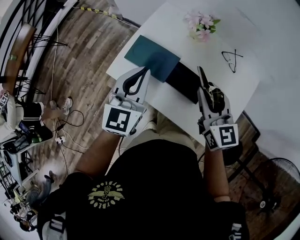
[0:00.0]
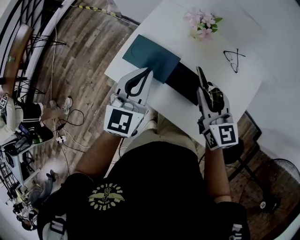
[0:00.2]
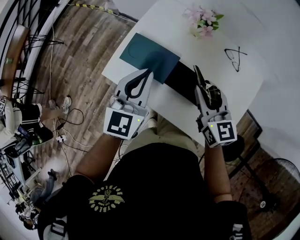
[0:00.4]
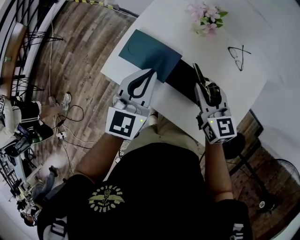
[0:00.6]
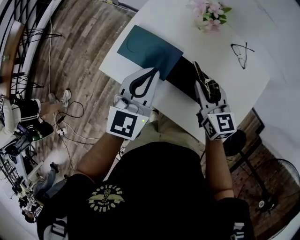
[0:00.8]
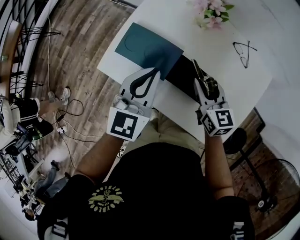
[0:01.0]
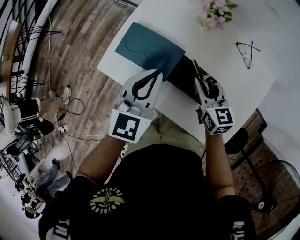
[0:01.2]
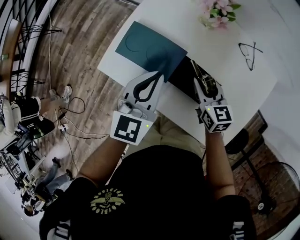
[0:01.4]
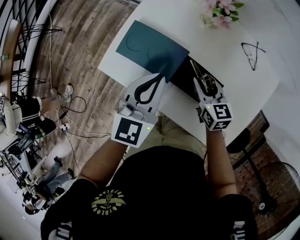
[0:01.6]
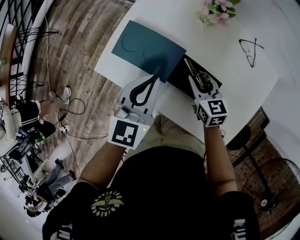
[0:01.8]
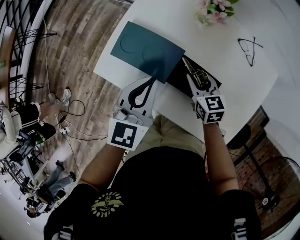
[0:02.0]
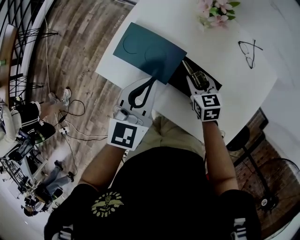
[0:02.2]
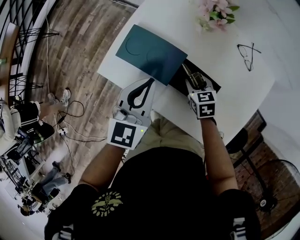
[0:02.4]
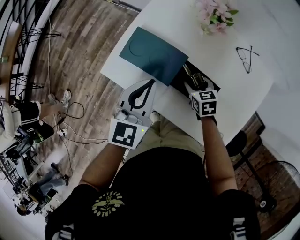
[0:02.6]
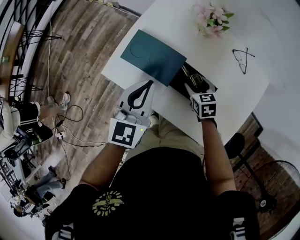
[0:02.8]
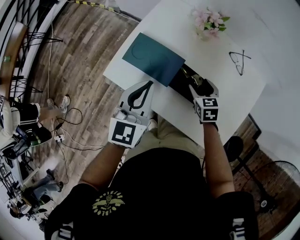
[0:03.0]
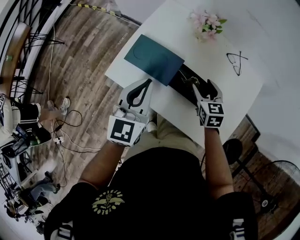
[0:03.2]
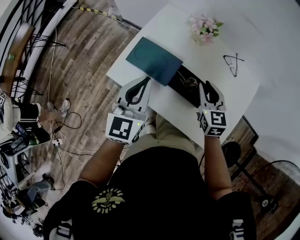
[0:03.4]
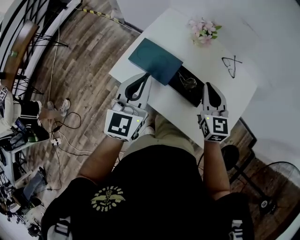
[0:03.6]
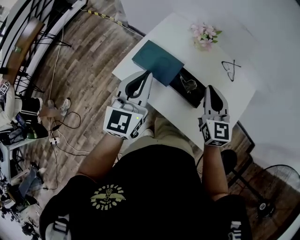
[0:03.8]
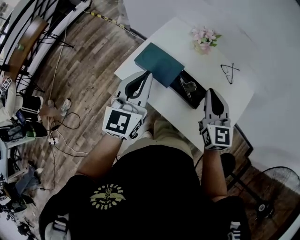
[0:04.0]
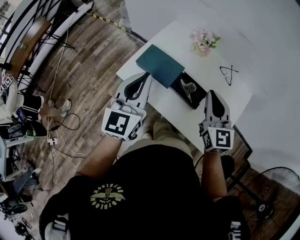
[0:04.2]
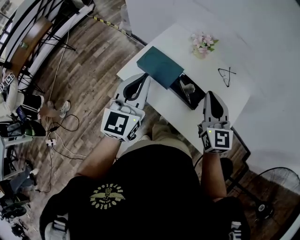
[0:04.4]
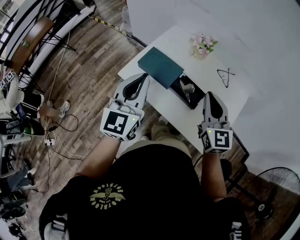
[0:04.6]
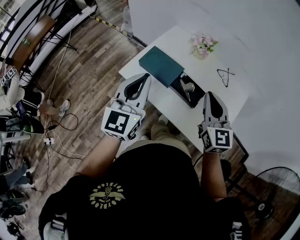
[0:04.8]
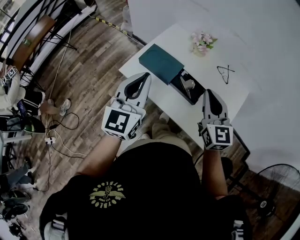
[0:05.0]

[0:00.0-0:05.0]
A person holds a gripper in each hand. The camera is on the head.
0:00.0 to 0:01.6: The right gripper shifts roughly 25 cm downward, and changes its angle by some 20 degrees, while the left gripper moves downward, roughly 10 cm.
0:01.6 to 0:03.4: The right gripper is displaced upward by roughly 10 cm, turns by about 20 degrees, and opens and closes again, while the left gripper shifts some 10 cm upward, to the left and backward.
0:03.4 to 0:05.0: The grippers both shift upward and backward by roughly 20 cm.

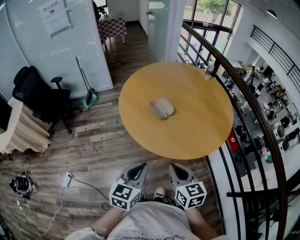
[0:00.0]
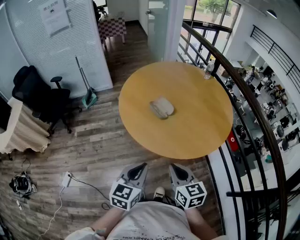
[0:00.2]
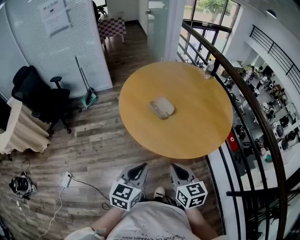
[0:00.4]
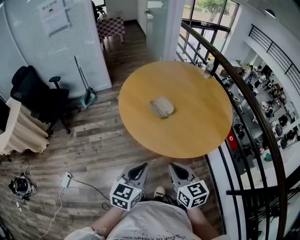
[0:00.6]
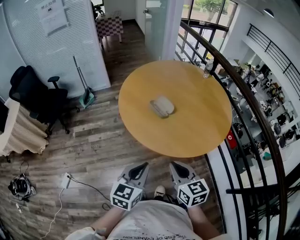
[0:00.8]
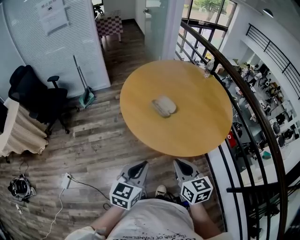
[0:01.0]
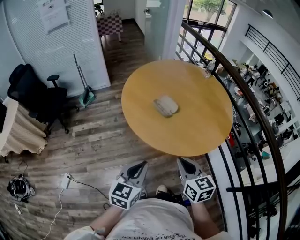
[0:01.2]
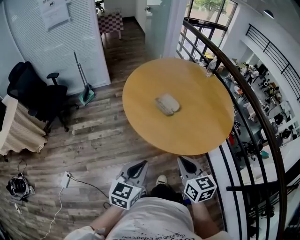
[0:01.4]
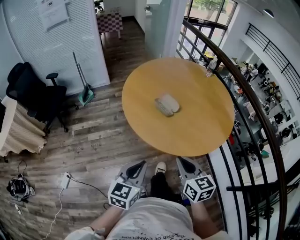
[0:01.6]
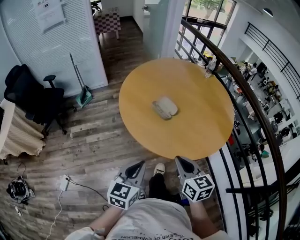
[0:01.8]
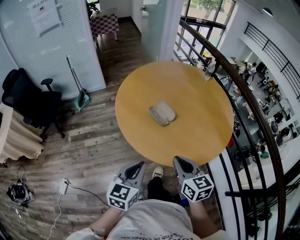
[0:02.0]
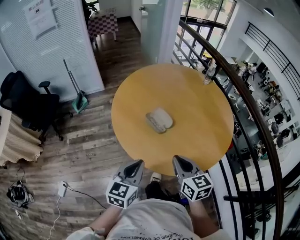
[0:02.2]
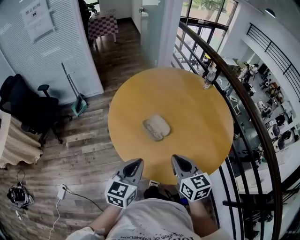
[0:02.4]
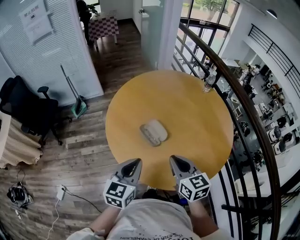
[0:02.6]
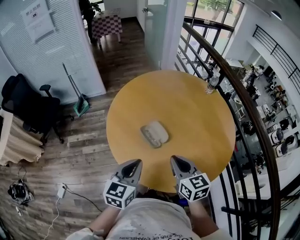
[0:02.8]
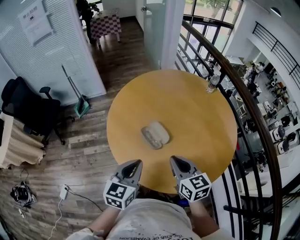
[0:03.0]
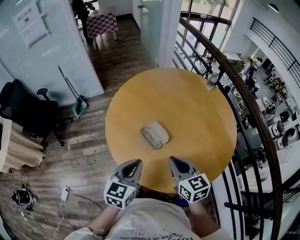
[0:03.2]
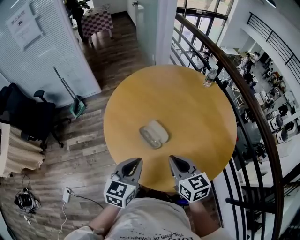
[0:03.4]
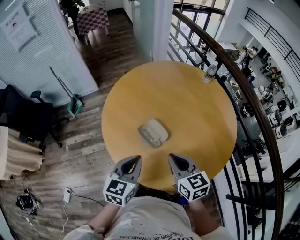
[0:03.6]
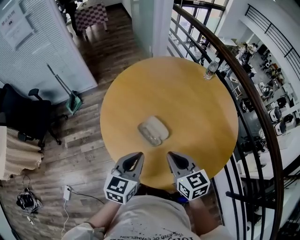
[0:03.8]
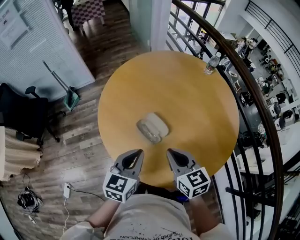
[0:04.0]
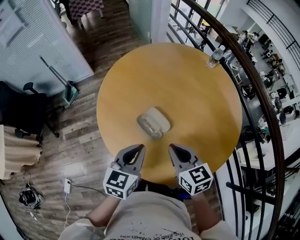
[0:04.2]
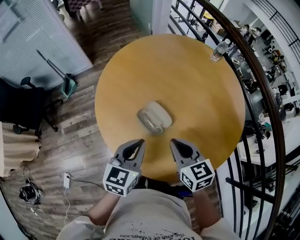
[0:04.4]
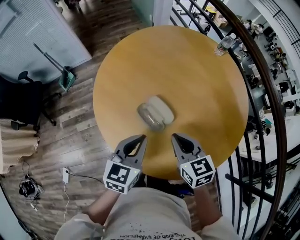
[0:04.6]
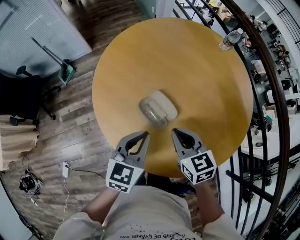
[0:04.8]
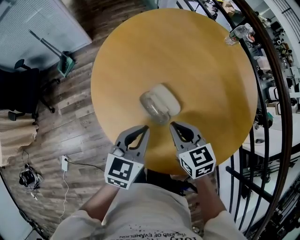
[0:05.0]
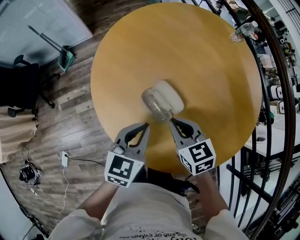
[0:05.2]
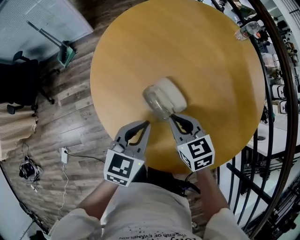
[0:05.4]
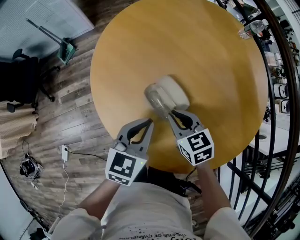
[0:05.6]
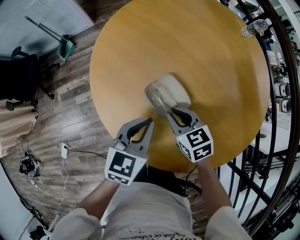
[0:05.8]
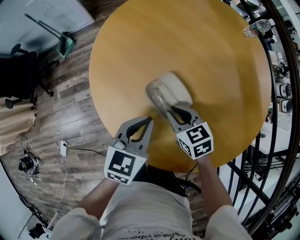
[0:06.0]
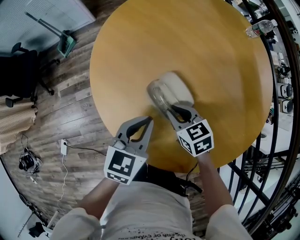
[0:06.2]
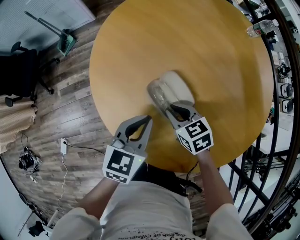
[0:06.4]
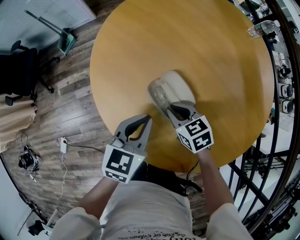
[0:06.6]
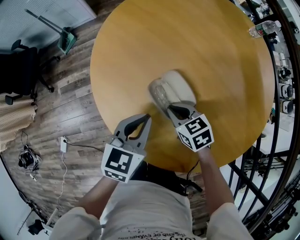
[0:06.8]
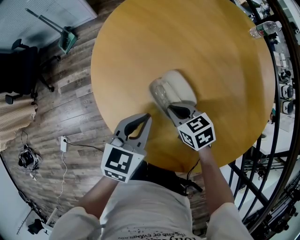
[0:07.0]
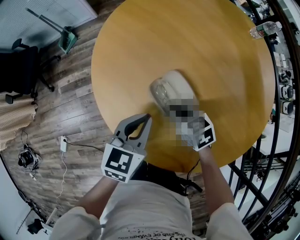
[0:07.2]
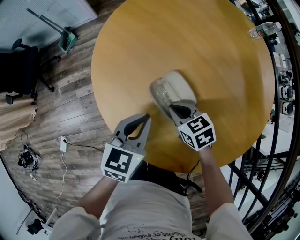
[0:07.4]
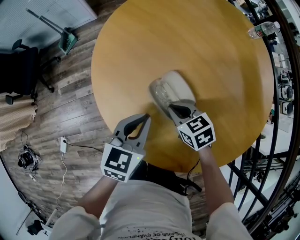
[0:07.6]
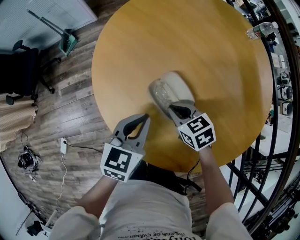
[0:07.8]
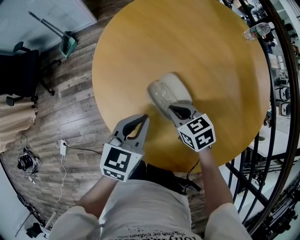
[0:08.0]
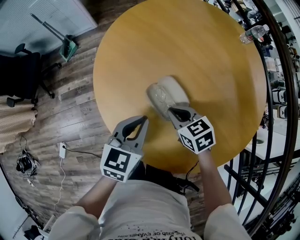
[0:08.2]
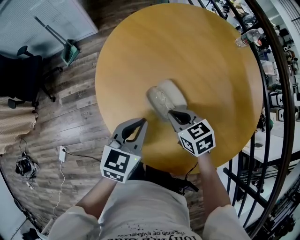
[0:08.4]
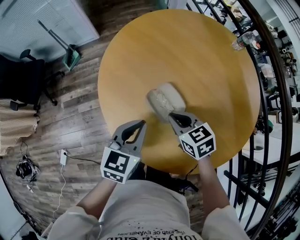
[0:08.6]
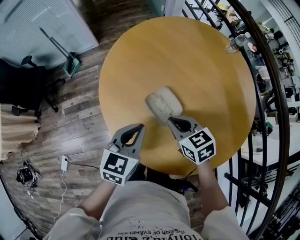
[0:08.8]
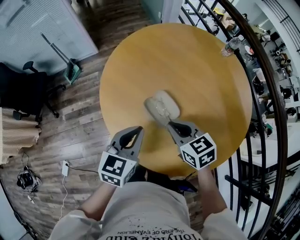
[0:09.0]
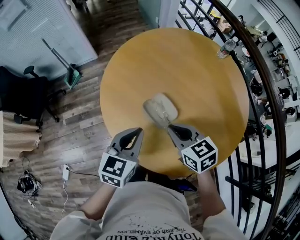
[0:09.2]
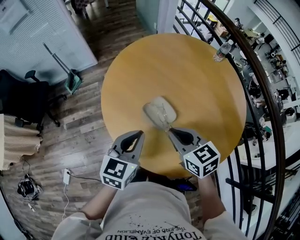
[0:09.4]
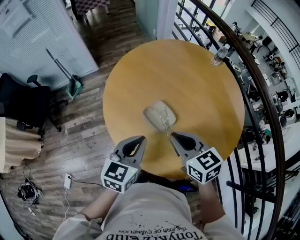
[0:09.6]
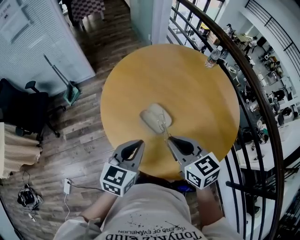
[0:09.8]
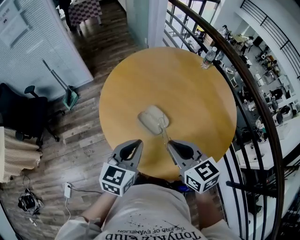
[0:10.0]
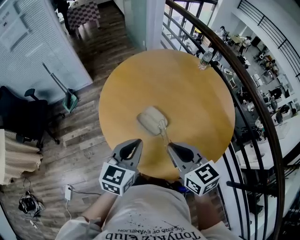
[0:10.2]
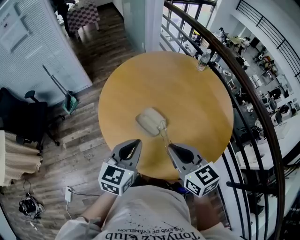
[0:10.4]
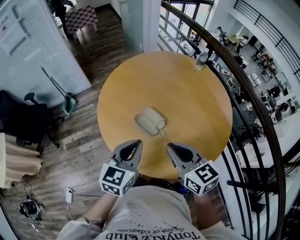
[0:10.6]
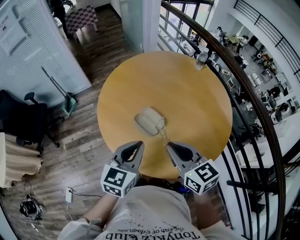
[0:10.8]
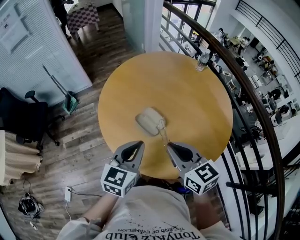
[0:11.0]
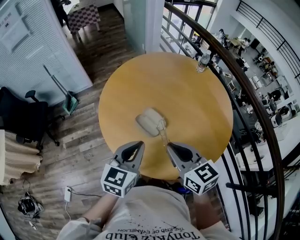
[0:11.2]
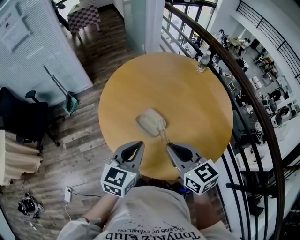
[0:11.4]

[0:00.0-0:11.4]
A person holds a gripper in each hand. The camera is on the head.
0:00.0 to 0:01.4: The left gripper goes roughly 5 cm to the left.
0:01.4 to 0:02.8: The grippers both shift forward by roughly 25 cm.
0:02.8 to 0:04.2: Both grippers move forward, approximately 10 cm.
0:04.2 to 0:05.6: The left gripper is displaced downward and forward by roughly 10 cm; the right gripper is displaced downward and forward by some 15 cm.
0:05.6 to 0:07.2: The right gripper shifts some 5 cm downward.
0:07.2 to 0:08.6: The left gripper travels upward by approximately 5 cm. The right gripper shifts roughly 10 cm upward.
0:08.6 to 0:10.0: The right gripper heads upward and backward, covering some 20 cm, and swivels roughly 20 degrees, while the left gripper travels upward and backward by some 10 cm.
0:10.0 to 0:11.4: The grippers stay close to where they were, moving slightly.

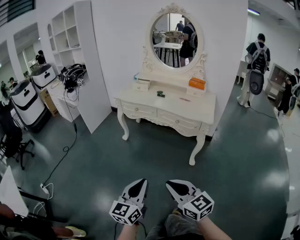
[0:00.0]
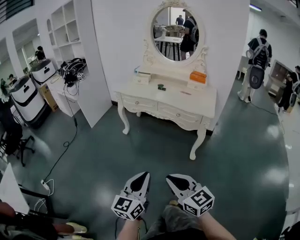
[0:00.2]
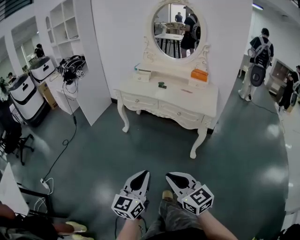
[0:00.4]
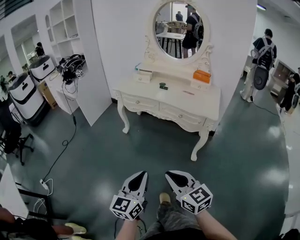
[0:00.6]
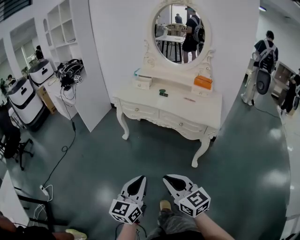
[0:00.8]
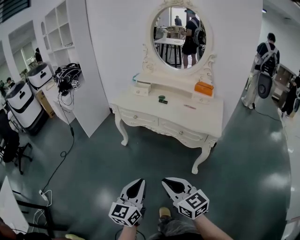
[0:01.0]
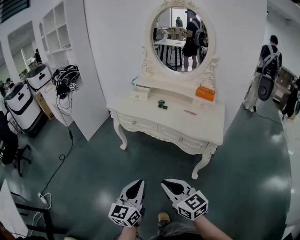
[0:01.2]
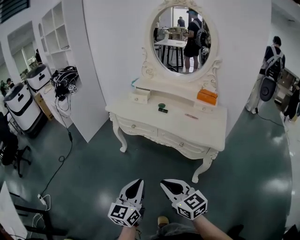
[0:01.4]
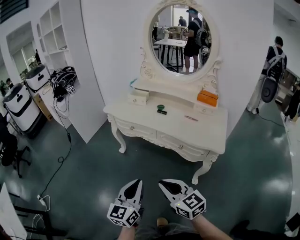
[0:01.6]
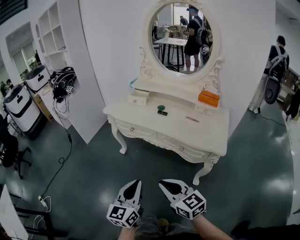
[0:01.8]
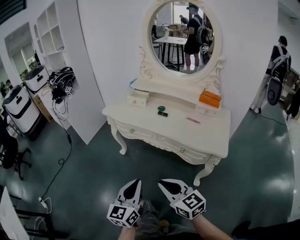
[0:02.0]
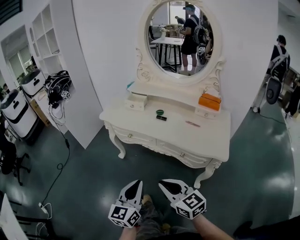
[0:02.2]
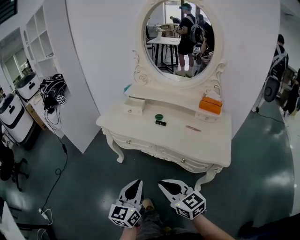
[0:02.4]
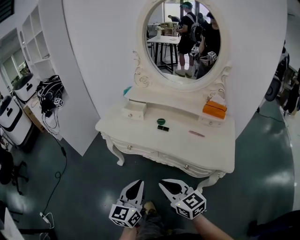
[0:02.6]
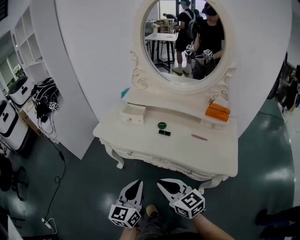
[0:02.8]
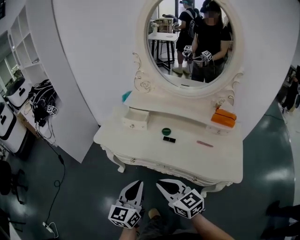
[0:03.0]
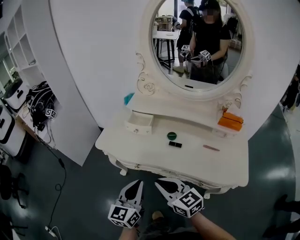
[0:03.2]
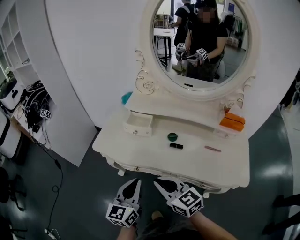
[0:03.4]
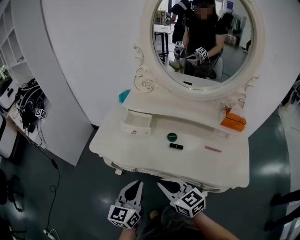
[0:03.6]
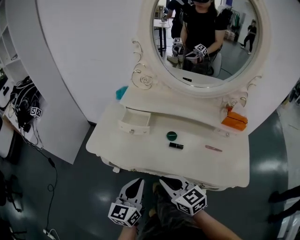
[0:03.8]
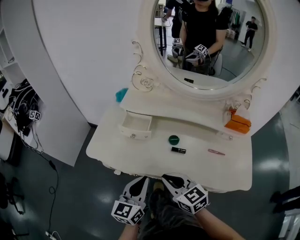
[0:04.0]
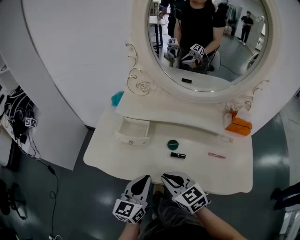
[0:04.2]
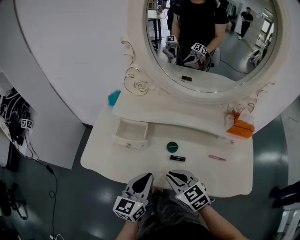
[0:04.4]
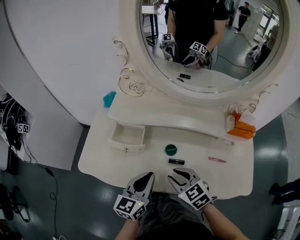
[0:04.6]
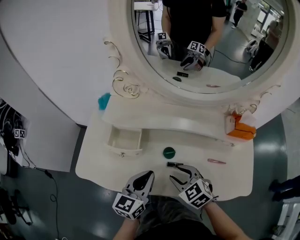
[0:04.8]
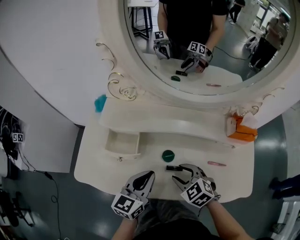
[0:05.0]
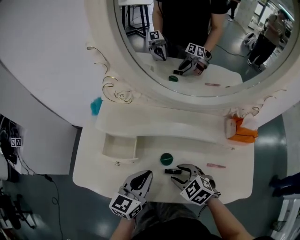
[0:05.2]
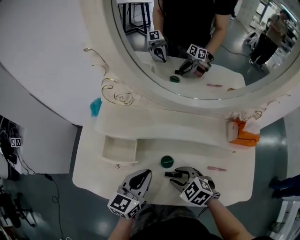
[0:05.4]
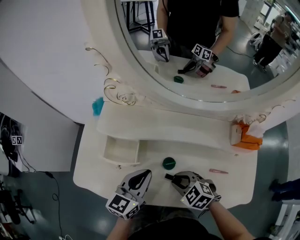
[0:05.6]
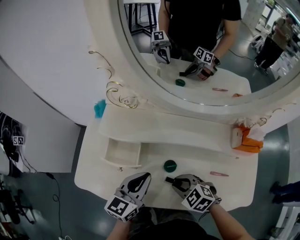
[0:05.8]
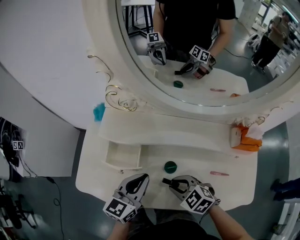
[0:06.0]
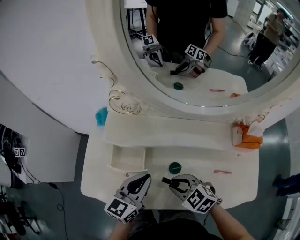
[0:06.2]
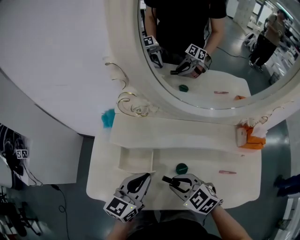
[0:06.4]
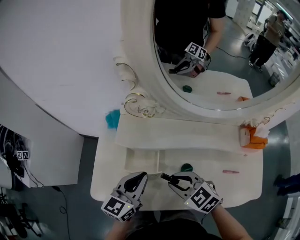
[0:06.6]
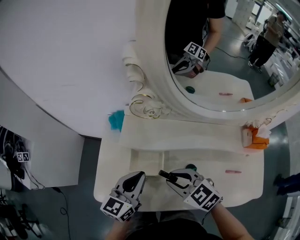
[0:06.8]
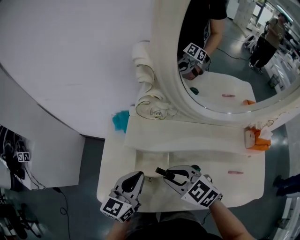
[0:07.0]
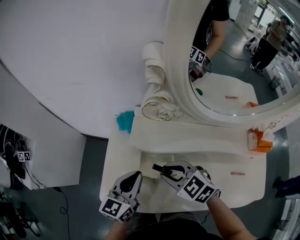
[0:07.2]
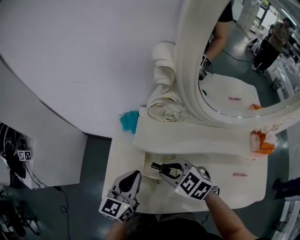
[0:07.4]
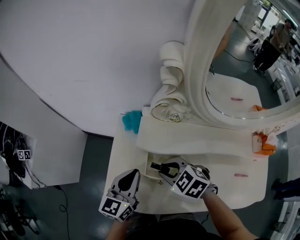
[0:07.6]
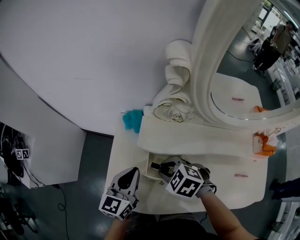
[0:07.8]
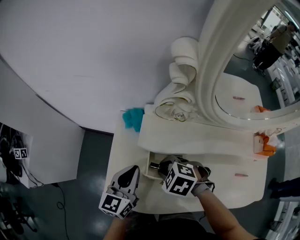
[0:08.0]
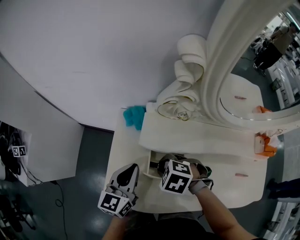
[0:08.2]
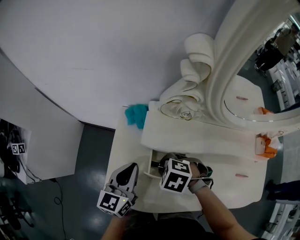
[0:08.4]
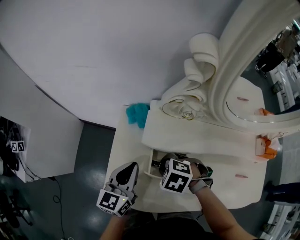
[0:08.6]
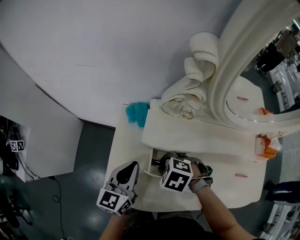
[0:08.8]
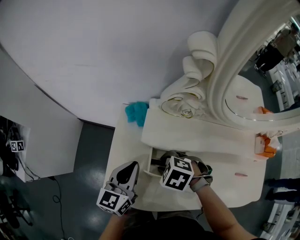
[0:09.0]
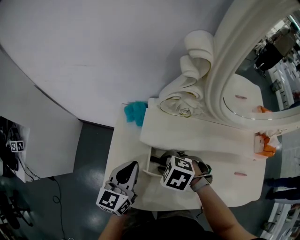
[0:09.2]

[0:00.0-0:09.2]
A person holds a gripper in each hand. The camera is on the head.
0:00.0 to 0:01.6: Both grippers move forward, approximately 30 cm.
0:01.6 to 0:03.0: The two grippers go about 30 cm forward.
0:03.0 to 0:04.6: The left gripper moves forward, roughly 25 cm. Meanwhile the right gripper shifts about 25 cm forward and downward, and swivels roughly 30 degrees.
0:04.6 to 0:06.2: The left gripper goes approximately 10 cm forward; the right gripper goes approximately 5 cm forward, and opens, then closes again.
0:06.2 to 0:07.6: The grippers both shift to the left and forward by approximately 20 cm.
0:07.6 to 0:09.2: The right gripper is displaced downward by about 5 cm, and changes its angle by approximately 20 degrees.
